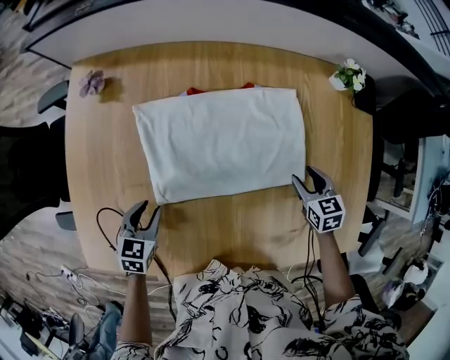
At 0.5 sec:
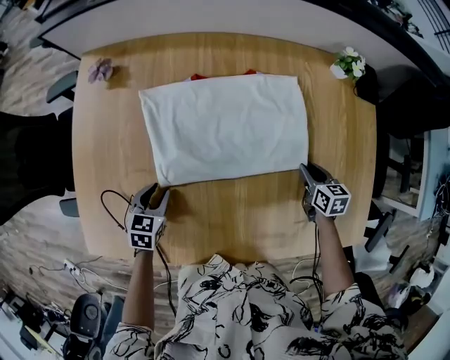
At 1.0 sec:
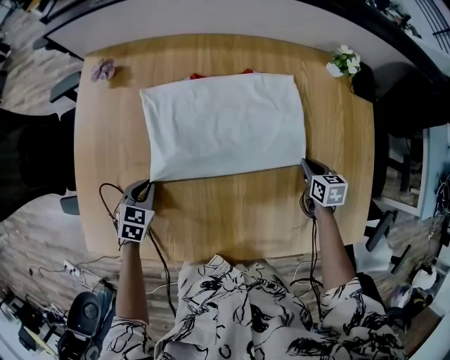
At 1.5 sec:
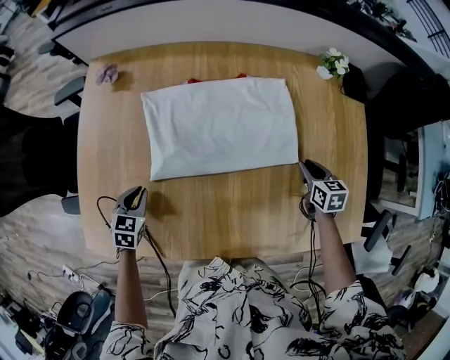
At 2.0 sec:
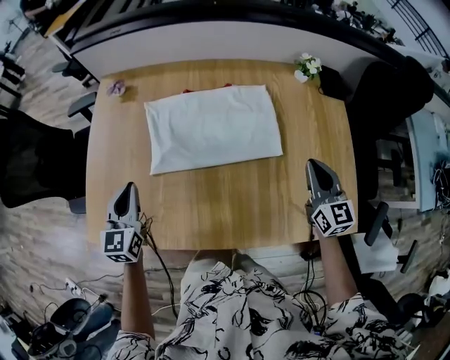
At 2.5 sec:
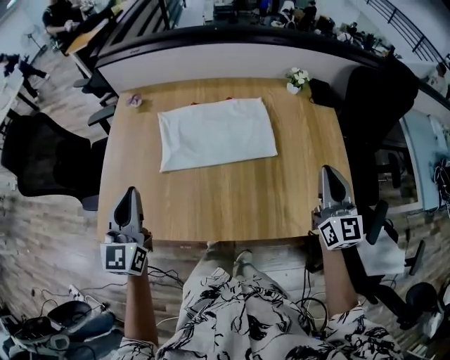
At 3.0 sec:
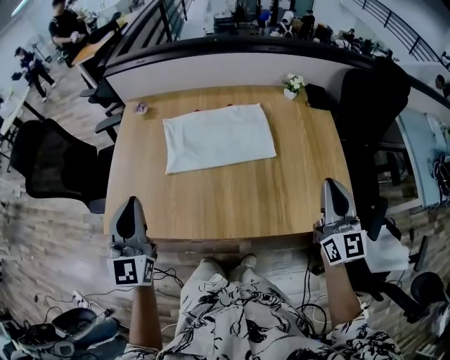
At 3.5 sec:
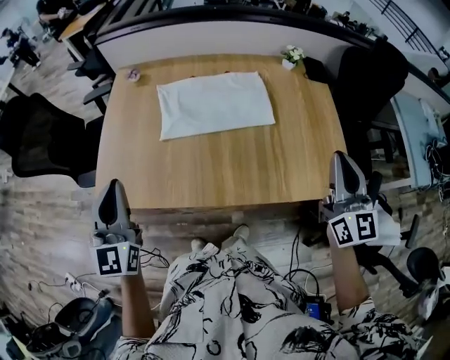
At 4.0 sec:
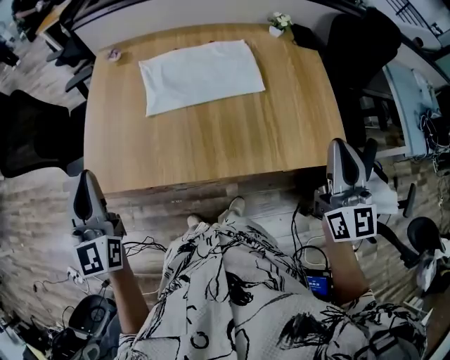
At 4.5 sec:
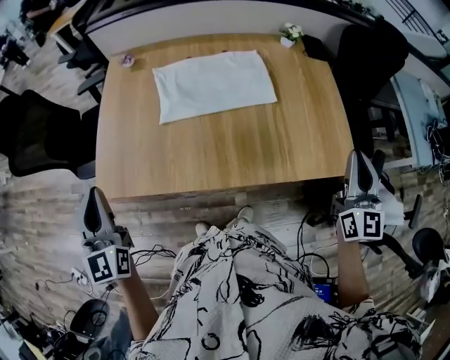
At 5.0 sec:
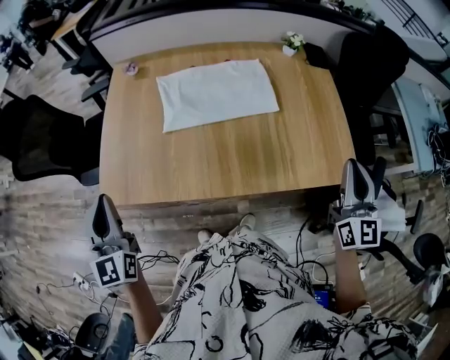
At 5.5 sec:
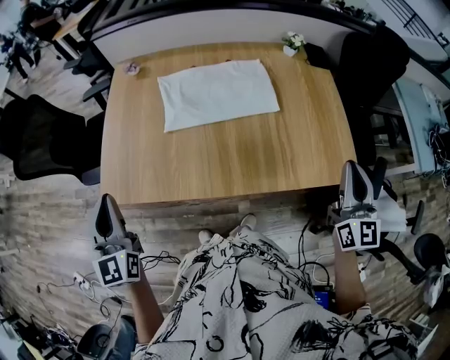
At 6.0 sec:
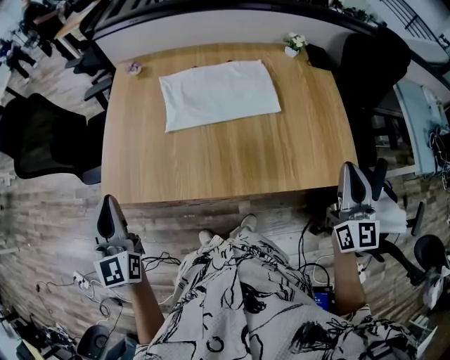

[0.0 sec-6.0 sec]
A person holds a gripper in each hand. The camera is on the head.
0.0 sec to 2.0 sec: The right gripper travels upward and backward by approximately 20 cm, angles its fingers upward, by approximately 40 degrees, and closes its fingers. Meanwhile the left gripper goes about 20 cm upward, and tips its fingers upward by roughly 30 degrees.
2.0 sec to 4.0 sec: Both grippers travel together backward and upward, some 30 cm. The left gripper swivels some 20 degrees.
4.0 sec to 6.0 sec: The left gripper shifts by approximately 5 cm.

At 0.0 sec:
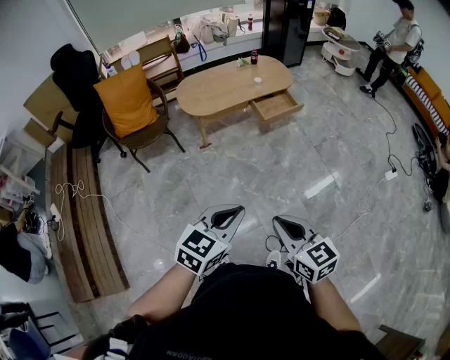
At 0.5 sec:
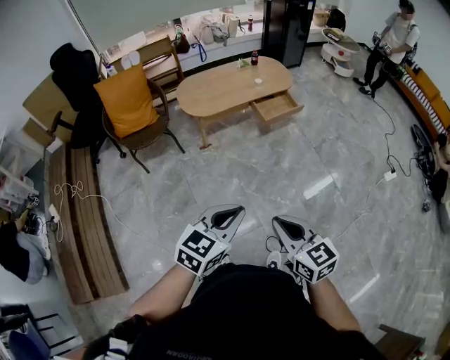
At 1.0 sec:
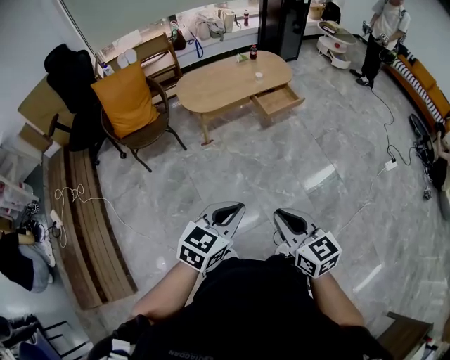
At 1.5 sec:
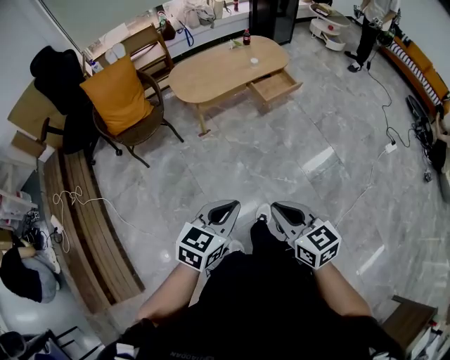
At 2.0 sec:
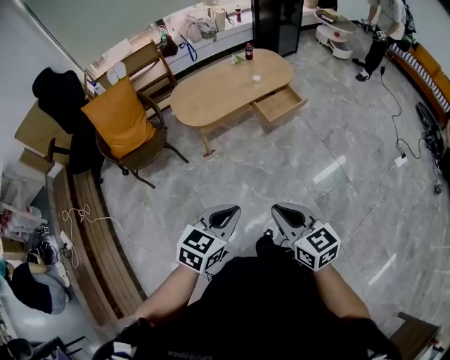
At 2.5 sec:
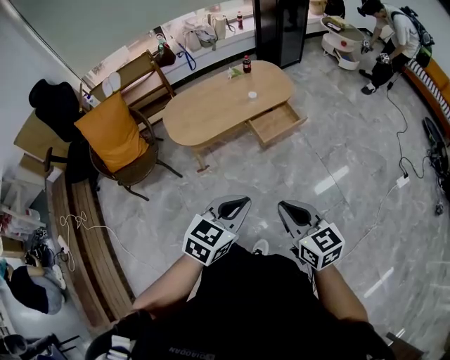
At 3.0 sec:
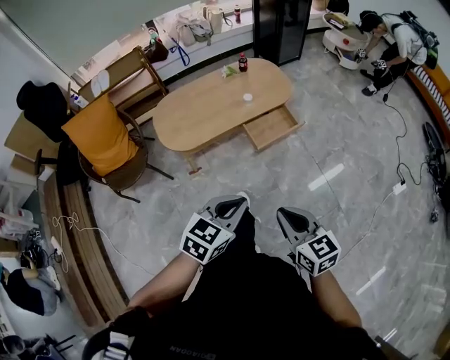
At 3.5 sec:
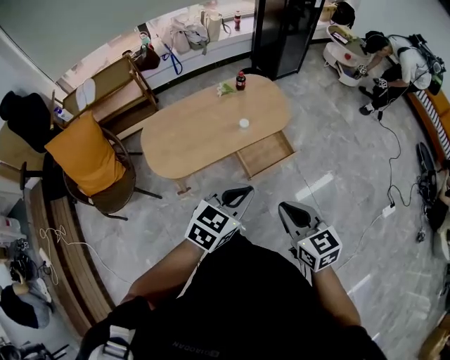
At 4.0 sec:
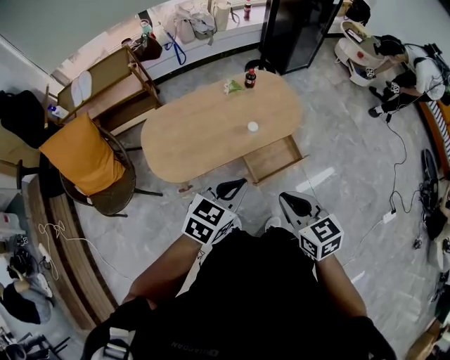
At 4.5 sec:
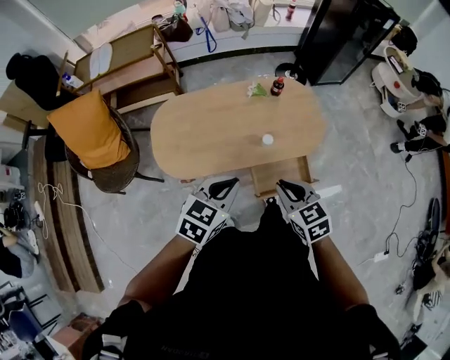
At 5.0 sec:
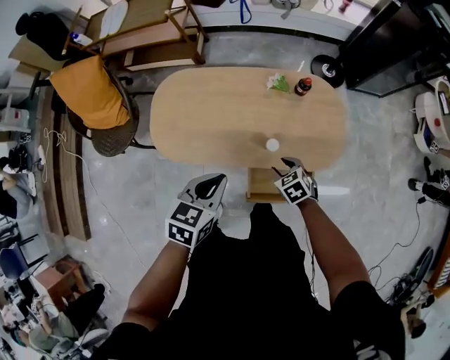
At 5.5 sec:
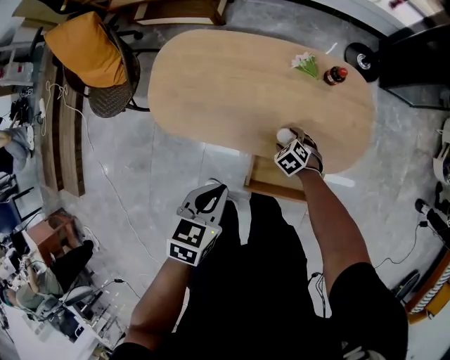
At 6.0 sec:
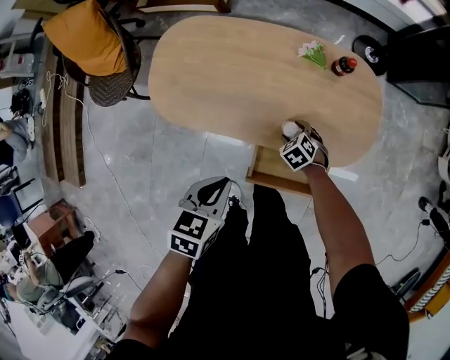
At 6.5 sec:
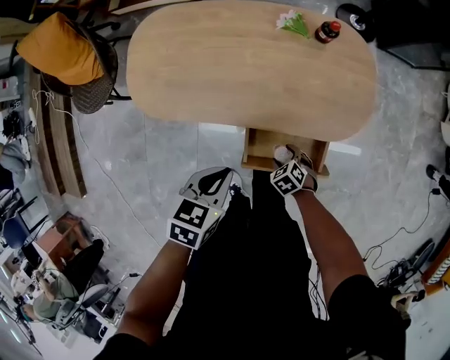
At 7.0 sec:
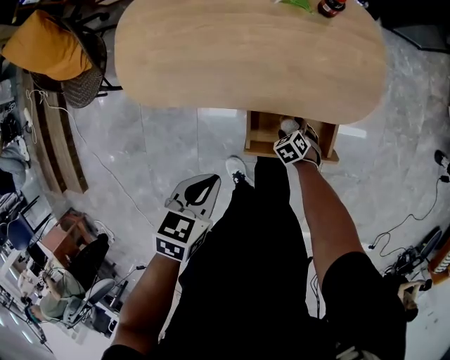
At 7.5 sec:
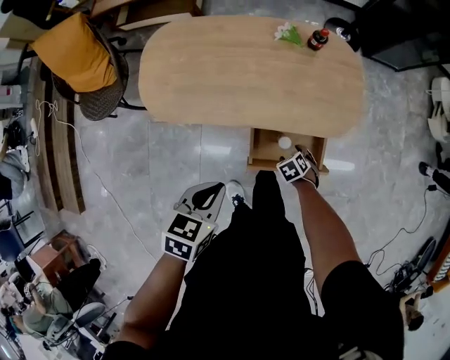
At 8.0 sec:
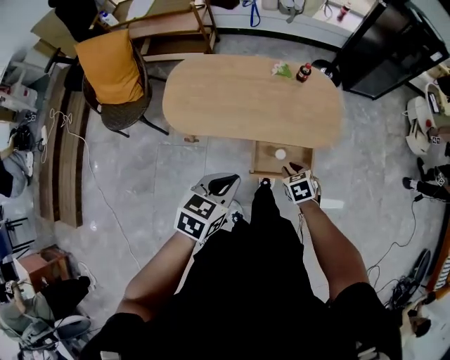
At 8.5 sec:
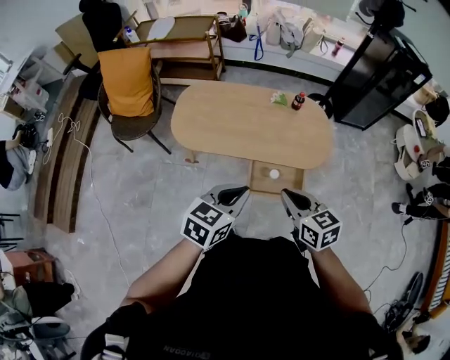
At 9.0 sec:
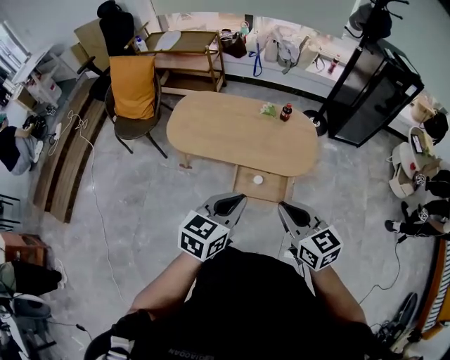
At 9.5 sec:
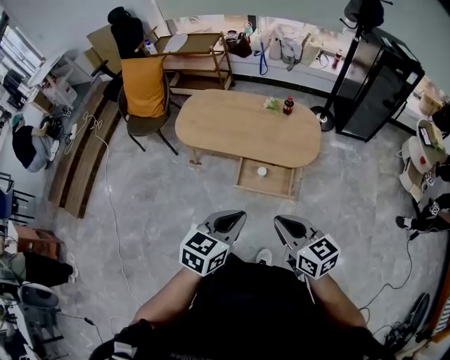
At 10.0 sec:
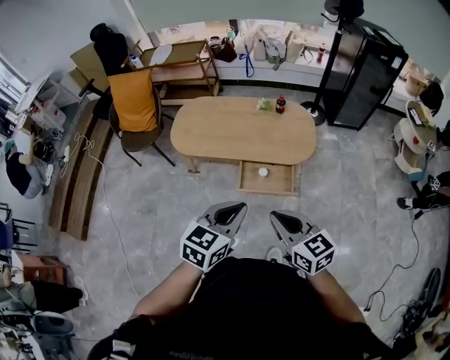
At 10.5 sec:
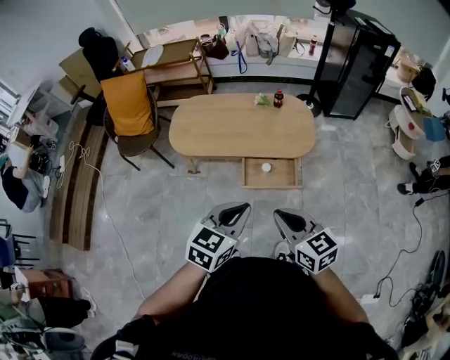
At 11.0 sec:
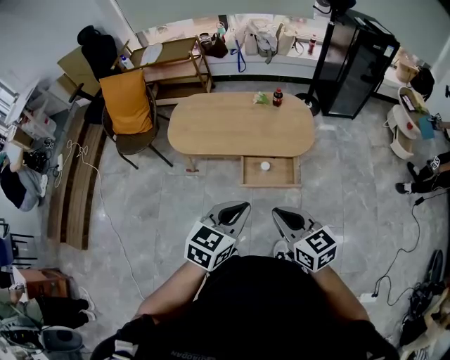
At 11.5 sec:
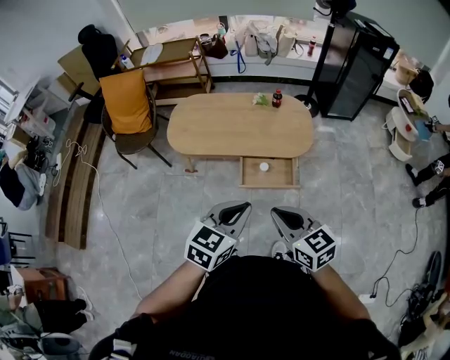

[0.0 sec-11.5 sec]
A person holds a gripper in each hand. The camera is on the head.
0.0 sec to 2.0 sec: The left gripper heads forward and to the left, covering approximately 15 cm. The right gripper heads forward, covering approximately 15 cm.
2.0 sec to 4.0 sec: The pair of grippers is taken forward, roughly 60 cm.
4.0 sec to 6.0 sec: The left gripper moves downward, about 20 cm, and rotates approximately 60 degrees, while the right gripper goes some 50 cm downward, points its fingers roughly 40 degrees further downward, and opens.
6.0 sec to 7.5 sec: The right gripper travels downward and back again, some 10 cm each way, and swivels about 20 degrees. Meanwhile the left gripper moves about 10 cm.
7.5 sec to 9.5 sec: The right gripper goes about 50 cm upward, angles its fingers upward, by about 60 degrees, and closes its fingers. The left gripper shifts by approximately 40 cm, and rotates some 30 degrees.
9.5 sec to 11.5 sec: The grippers both shift to the left by roughly 10 cm.

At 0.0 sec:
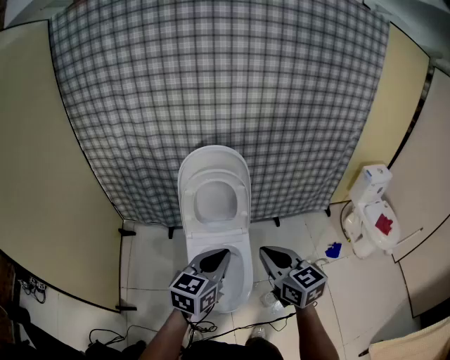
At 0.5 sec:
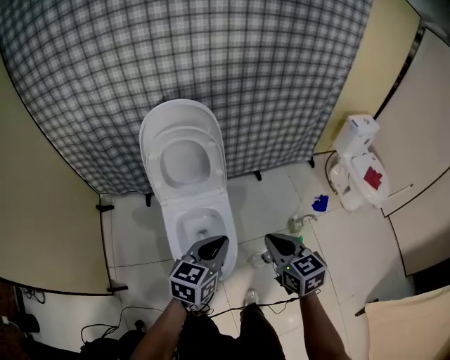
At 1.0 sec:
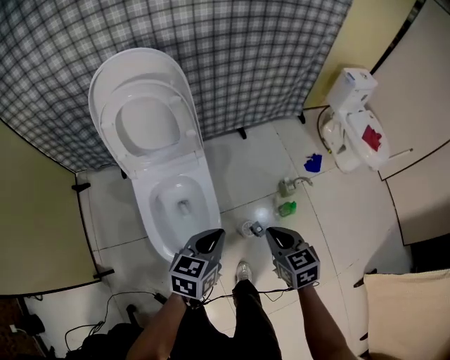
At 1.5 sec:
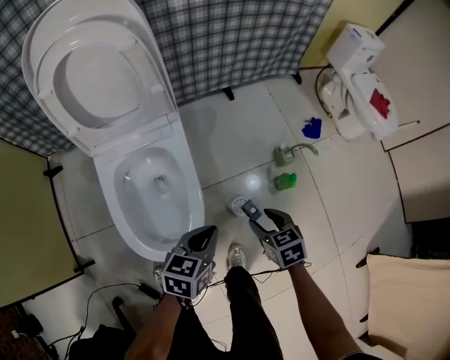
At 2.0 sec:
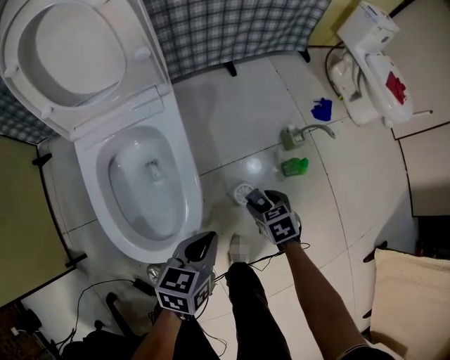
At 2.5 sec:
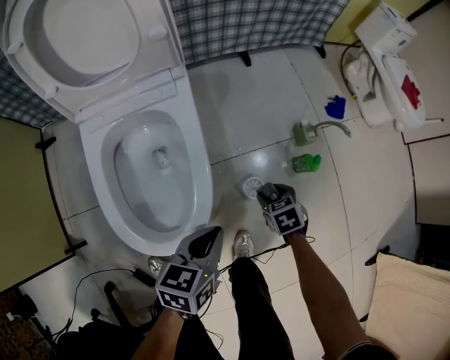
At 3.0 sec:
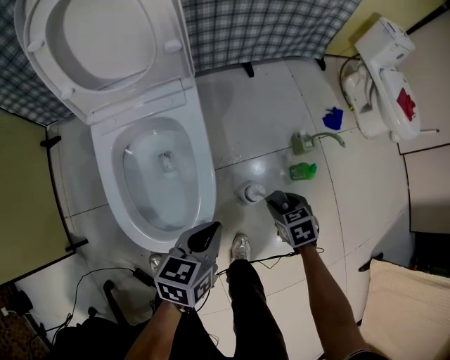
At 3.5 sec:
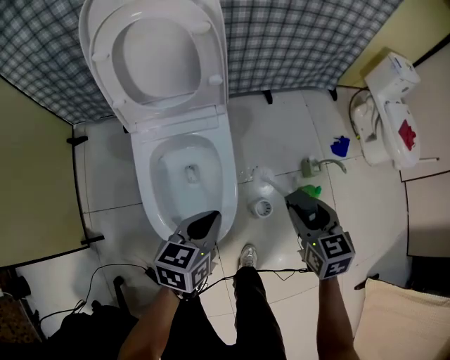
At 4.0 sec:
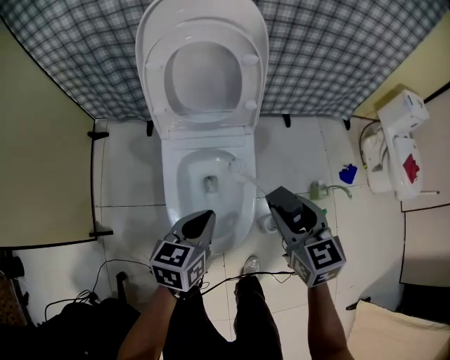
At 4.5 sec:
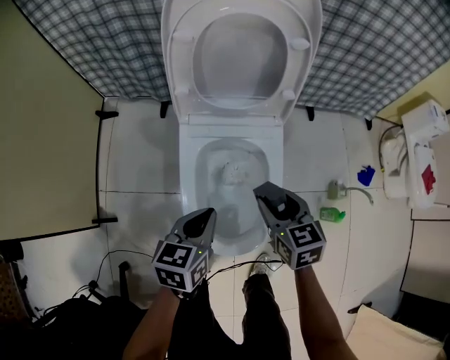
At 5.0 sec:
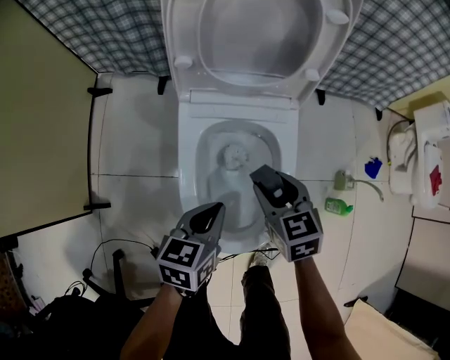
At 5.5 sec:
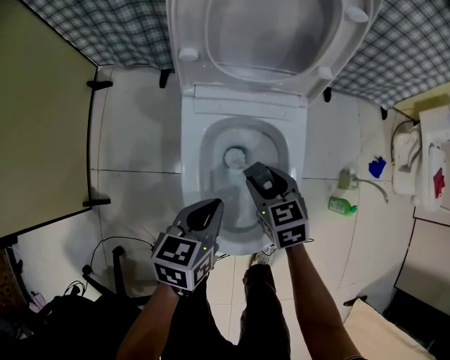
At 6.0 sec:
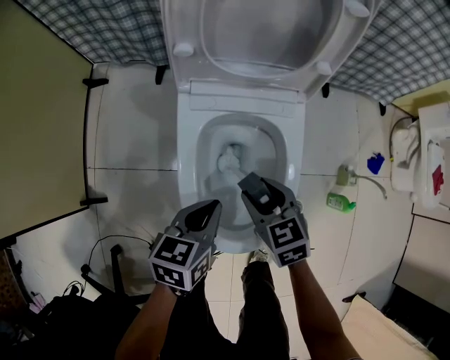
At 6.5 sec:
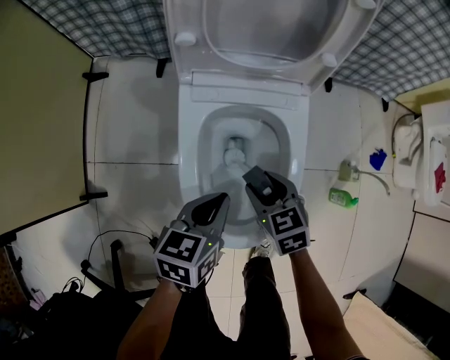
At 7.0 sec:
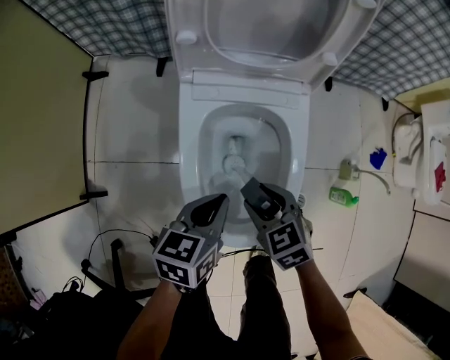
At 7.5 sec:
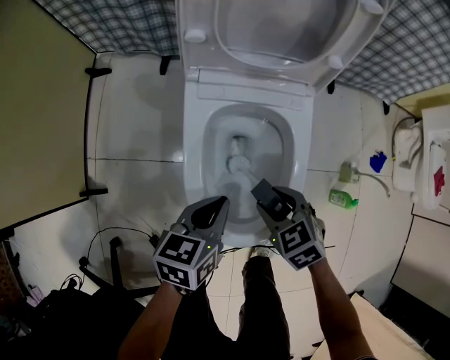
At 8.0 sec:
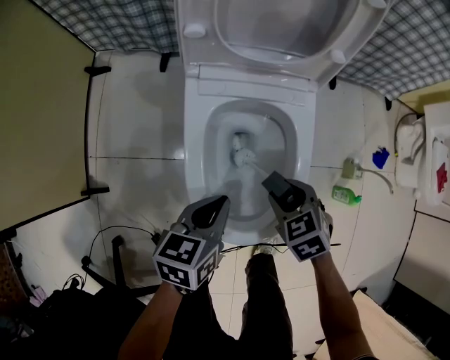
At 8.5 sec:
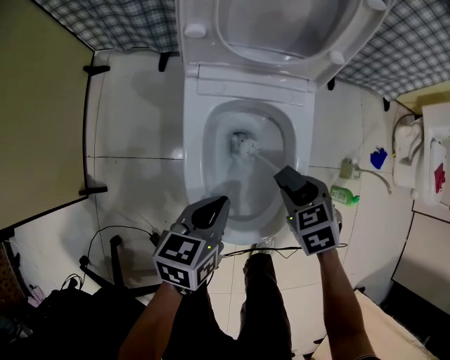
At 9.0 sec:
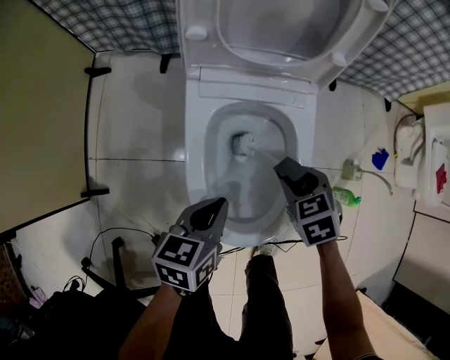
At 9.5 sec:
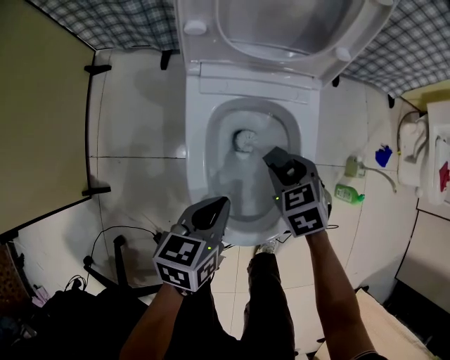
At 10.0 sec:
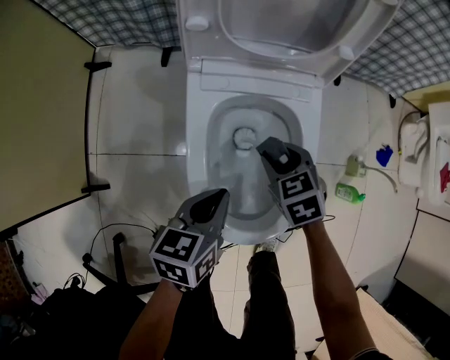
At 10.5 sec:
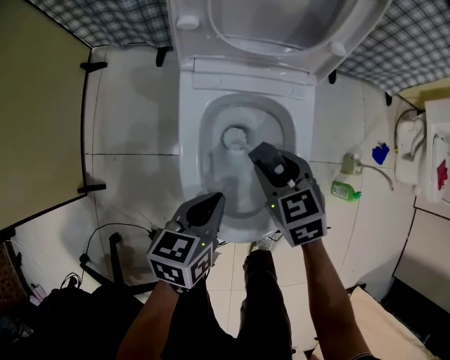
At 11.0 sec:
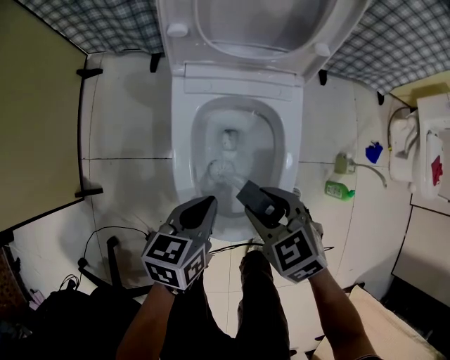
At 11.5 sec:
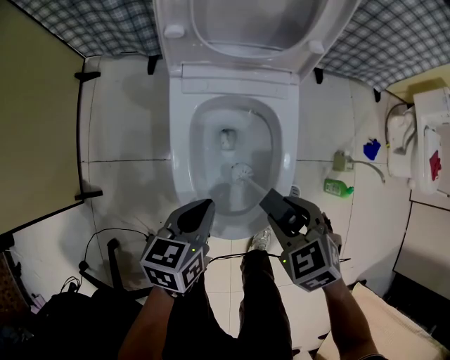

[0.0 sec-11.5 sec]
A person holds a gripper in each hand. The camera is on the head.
0.0 sec to 2.0 sec: The two grippers go about 50 cm downward and to the right. The left gripper turns by roughly 30 degrees. Meanwhile the right gripper tips its fingers downward by roughly 50 degrees, and opens.
2.0 sec to 4.0 sec: The left gripper moves to the left and upward, some 25 cm. Meanwhile the right gripper travels upward and to the left by some 40 cm, and tips its fingers upward by roughly 30 degrees.
4.0 sec to 6.0 sec: The right gripper moves downward and to the left, approximately 25 cm, and changes its angle by approximately 20 degrees. Meanwhile the left gripper shifts some 15 cm downward and to the left.
6.0 sec to 7.5 sec: The right gripper changes place by about 5 cm.
7.5 sec to 9.5 sec: The right gripper heads forward, covering about 10 cm.
9.5 sec to 11.5 sec: The right gripper is displaced backward and upward by roughly 15 cm.
